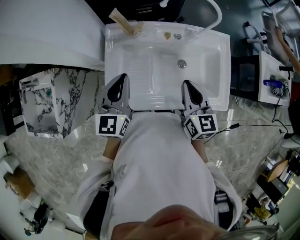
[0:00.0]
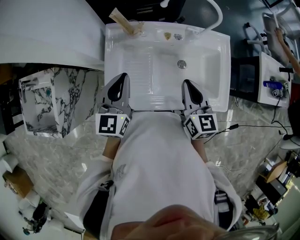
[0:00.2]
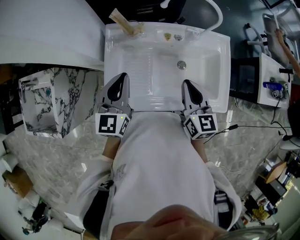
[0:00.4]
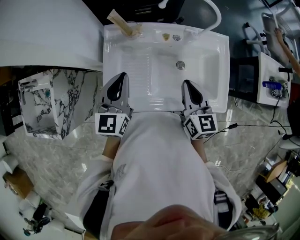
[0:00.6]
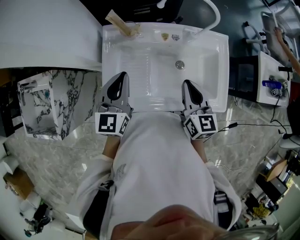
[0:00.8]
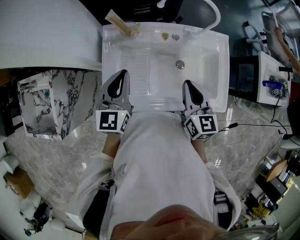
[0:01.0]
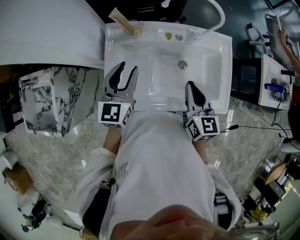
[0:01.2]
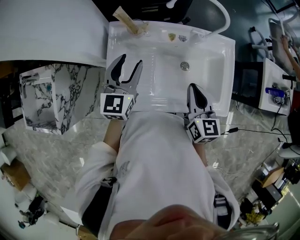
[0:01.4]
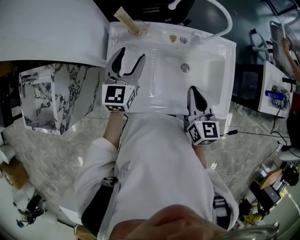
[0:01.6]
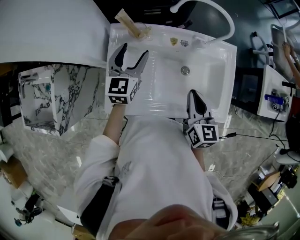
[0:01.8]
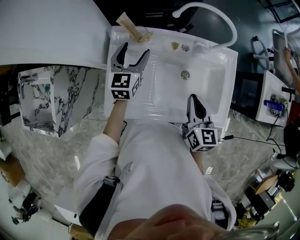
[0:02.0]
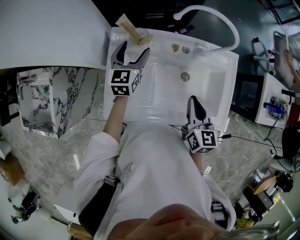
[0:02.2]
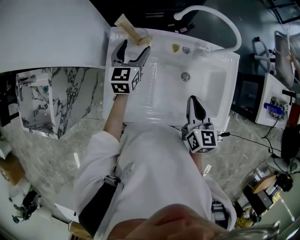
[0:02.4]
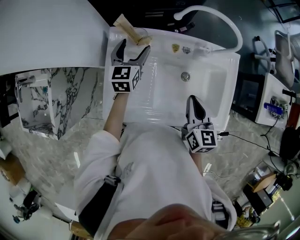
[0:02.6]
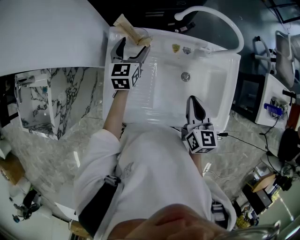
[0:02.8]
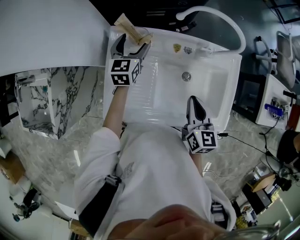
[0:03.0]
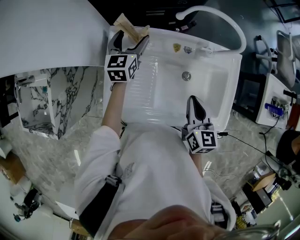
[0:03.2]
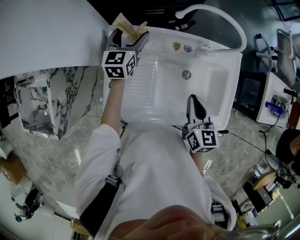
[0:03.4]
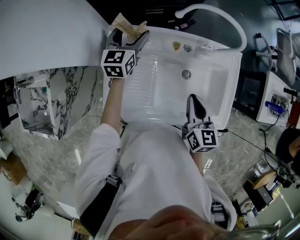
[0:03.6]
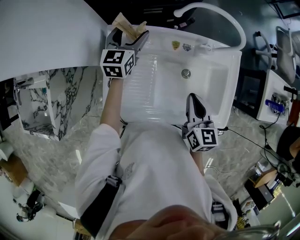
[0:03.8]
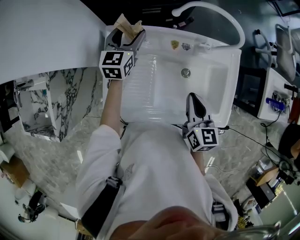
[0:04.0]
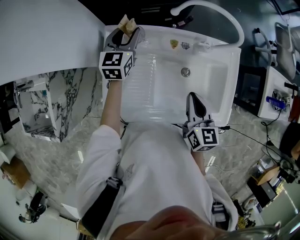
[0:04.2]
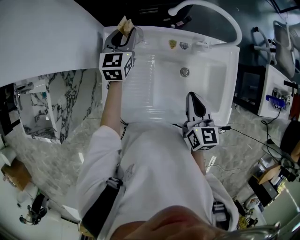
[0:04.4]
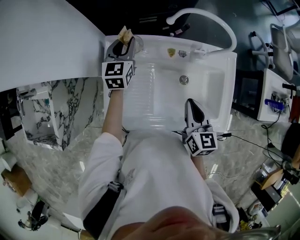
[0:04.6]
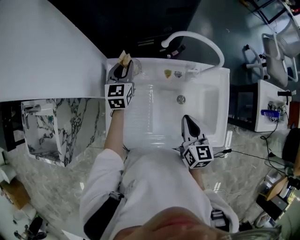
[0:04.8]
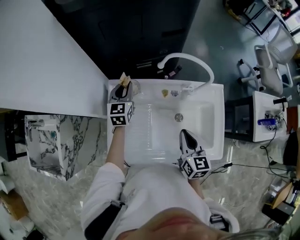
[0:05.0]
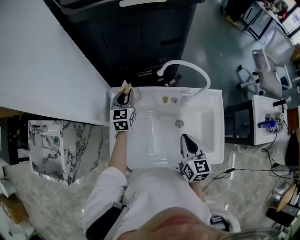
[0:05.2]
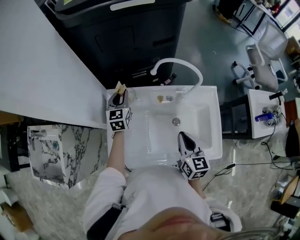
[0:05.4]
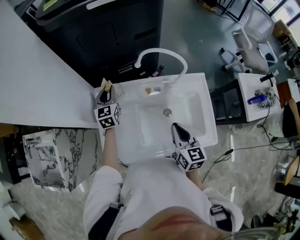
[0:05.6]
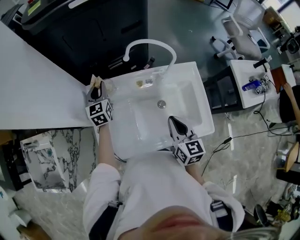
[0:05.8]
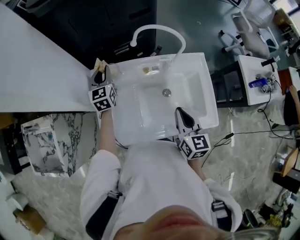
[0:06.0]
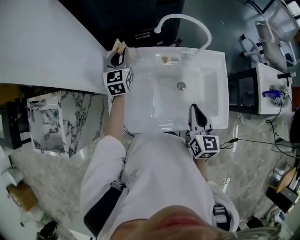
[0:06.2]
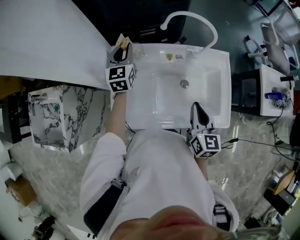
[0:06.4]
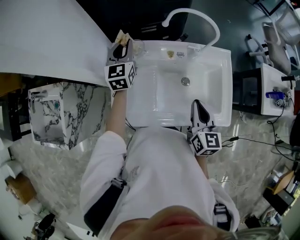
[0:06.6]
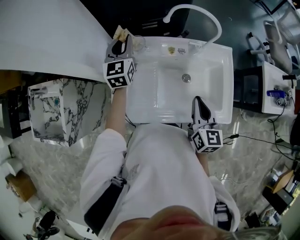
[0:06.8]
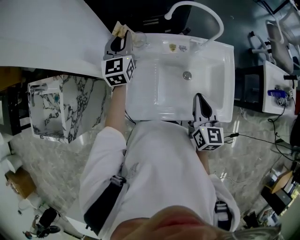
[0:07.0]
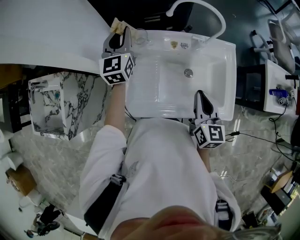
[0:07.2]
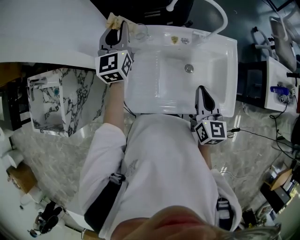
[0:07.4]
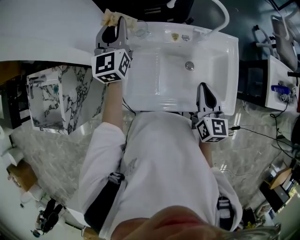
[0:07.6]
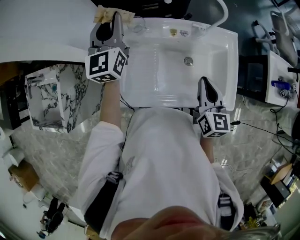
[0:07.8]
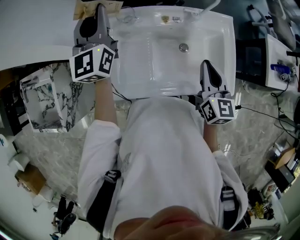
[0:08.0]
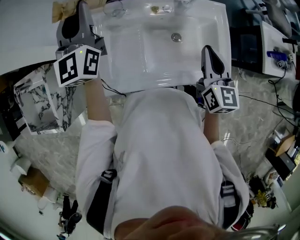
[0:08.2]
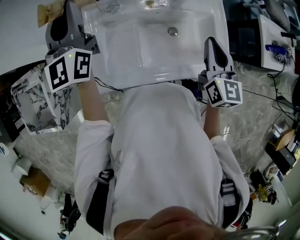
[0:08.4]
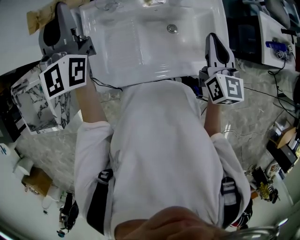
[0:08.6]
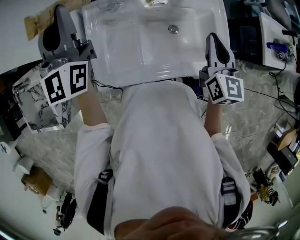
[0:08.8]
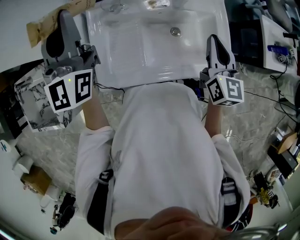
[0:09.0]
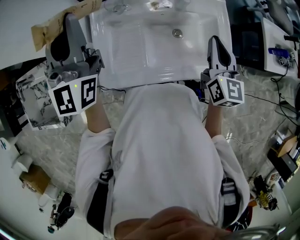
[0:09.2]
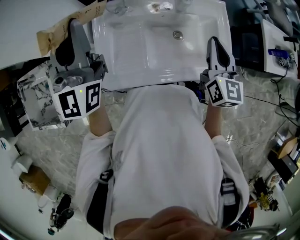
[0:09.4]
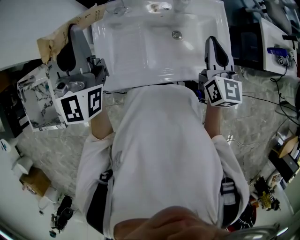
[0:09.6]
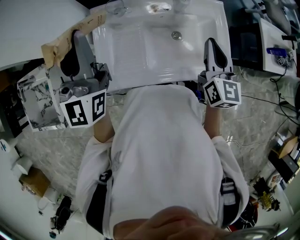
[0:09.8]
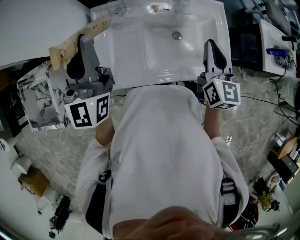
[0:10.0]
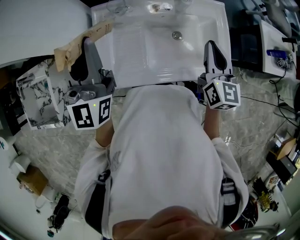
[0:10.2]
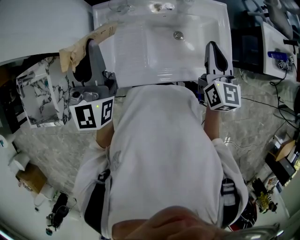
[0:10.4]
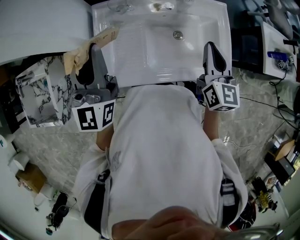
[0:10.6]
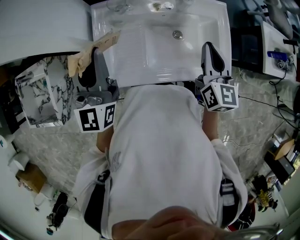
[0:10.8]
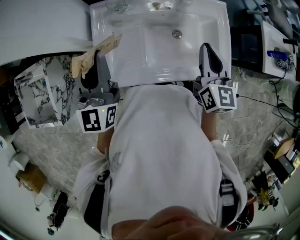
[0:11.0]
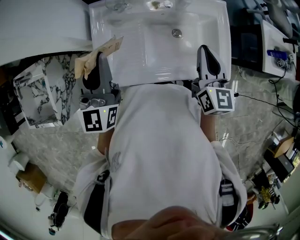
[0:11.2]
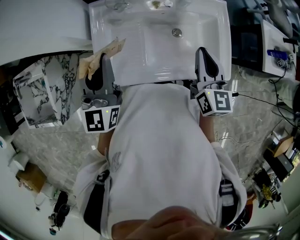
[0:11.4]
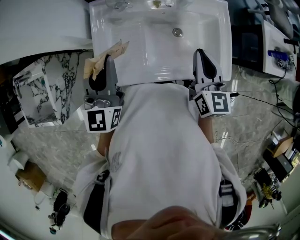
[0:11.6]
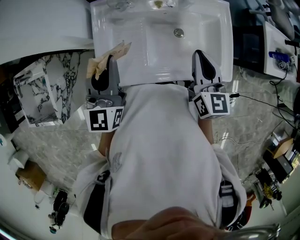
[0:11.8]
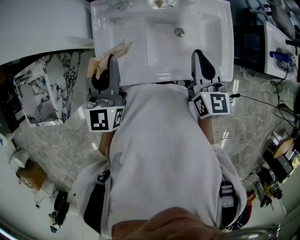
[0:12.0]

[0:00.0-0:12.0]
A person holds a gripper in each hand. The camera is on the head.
0.0 to 1.6 s: The left gripper shifts approximately 10 cm forward, and opens.
1.6 to 3.0 s: The left gripper heads forward and downward, covering about 15 cm. Meanwhile the right gripper shifts by about 5 cm.
3.0 to 4.4 s: The left gripper closes.
4.4 to 6.0 s: The right gripper heads backward, covering approximately 5 cm, while the left gripper shifts by roughly 5 cm.
6.0 to 7.6 s: The left gripper shifts roughly 10 cm upward.
7.6 to 9.0 s: The right gripper travels to the right and upward by some 10 cm. The left gripper travels upward and backward by some 15 cm.
9.0 to 10.4 s: The left gripper shifts some 10 cm backward.
10.4 to 12.0 s: The left gripper shifts approximately 10 cm downward. Meanwhile the right gripper shifts by roughly 5 cm.

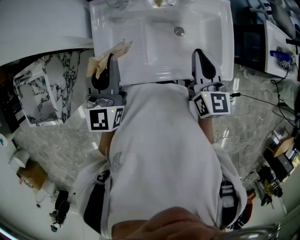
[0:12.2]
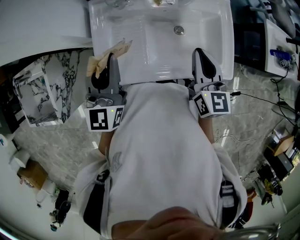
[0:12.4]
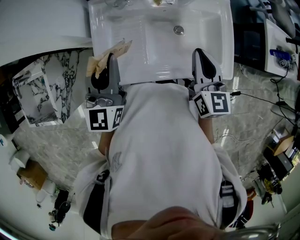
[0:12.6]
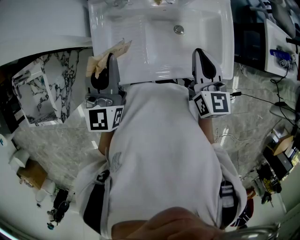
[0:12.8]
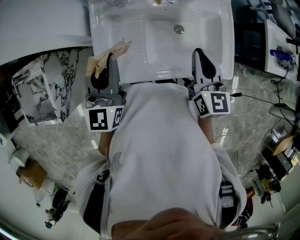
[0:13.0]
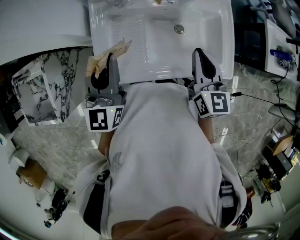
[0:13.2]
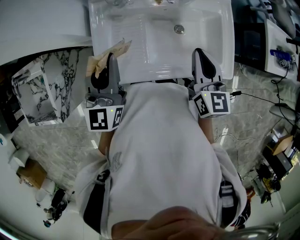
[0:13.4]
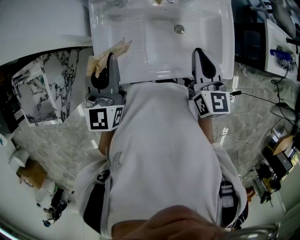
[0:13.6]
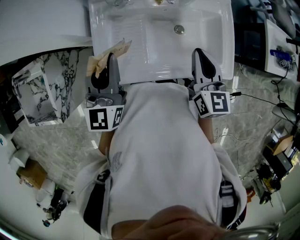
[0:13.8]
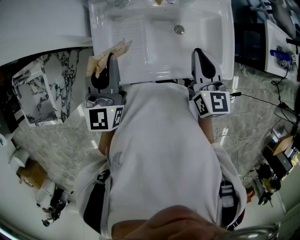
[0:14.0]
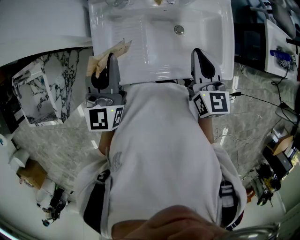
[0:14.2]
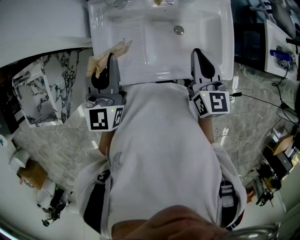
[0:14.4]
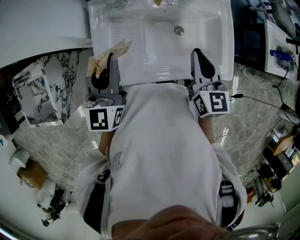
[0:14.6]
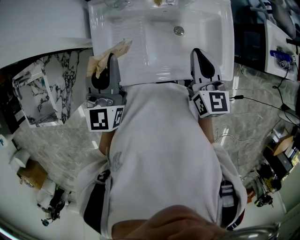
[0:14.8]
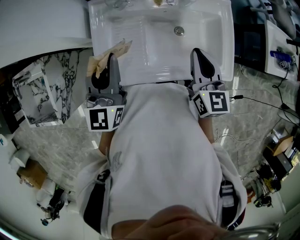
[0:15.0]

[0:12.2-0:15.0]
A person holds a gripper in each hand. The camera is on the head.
12.2 to 15.0 s: Both grippers stay put.

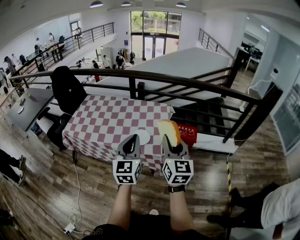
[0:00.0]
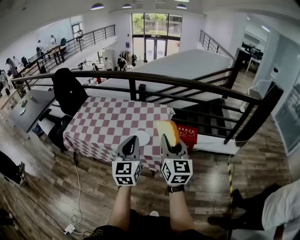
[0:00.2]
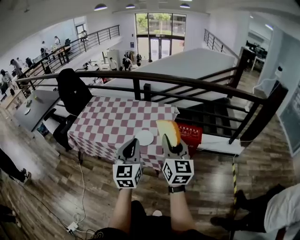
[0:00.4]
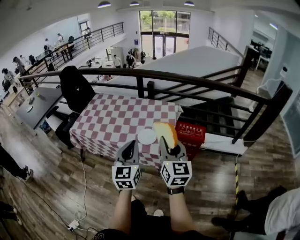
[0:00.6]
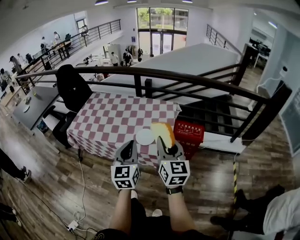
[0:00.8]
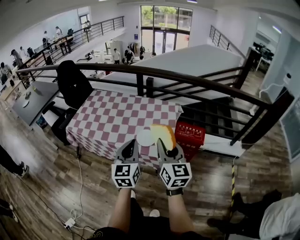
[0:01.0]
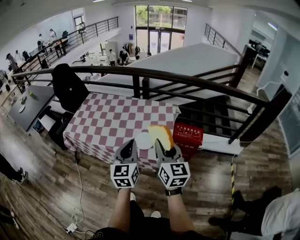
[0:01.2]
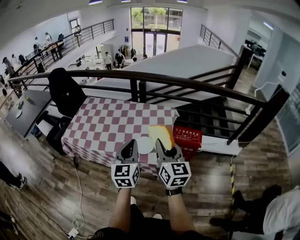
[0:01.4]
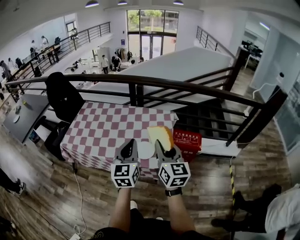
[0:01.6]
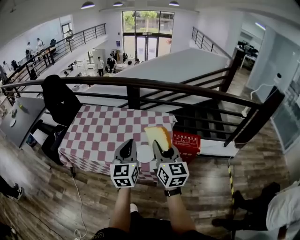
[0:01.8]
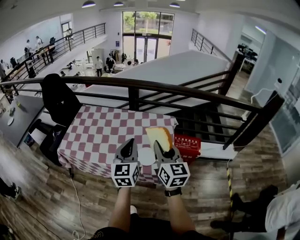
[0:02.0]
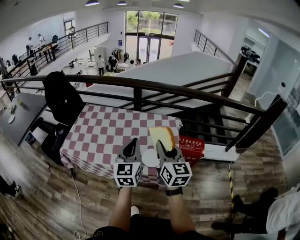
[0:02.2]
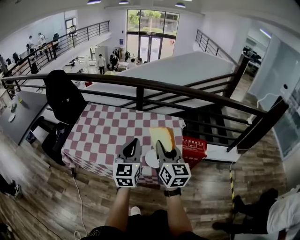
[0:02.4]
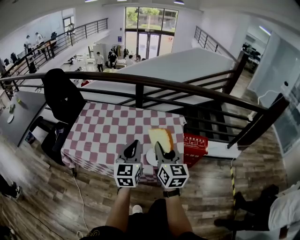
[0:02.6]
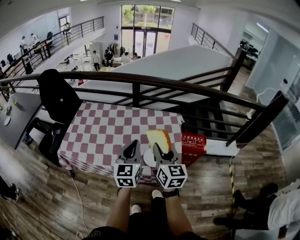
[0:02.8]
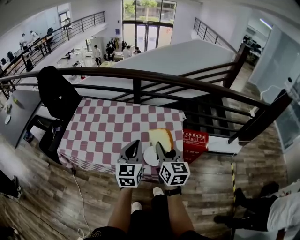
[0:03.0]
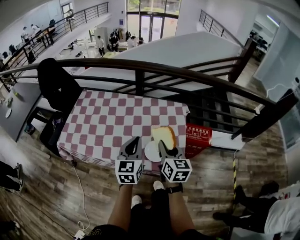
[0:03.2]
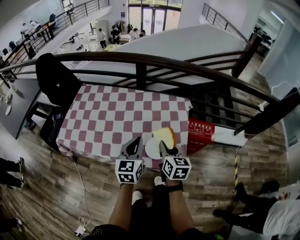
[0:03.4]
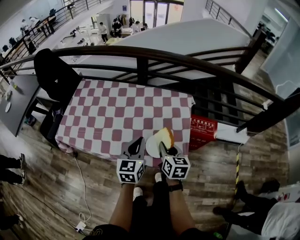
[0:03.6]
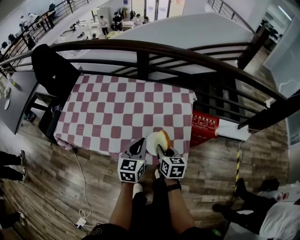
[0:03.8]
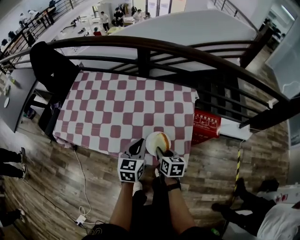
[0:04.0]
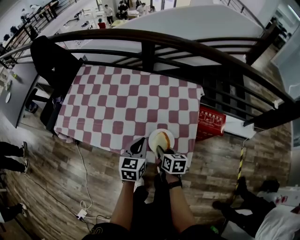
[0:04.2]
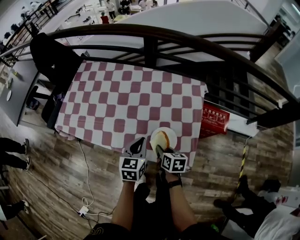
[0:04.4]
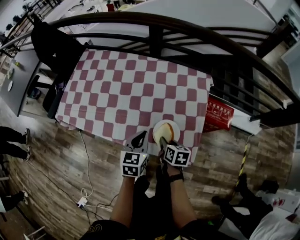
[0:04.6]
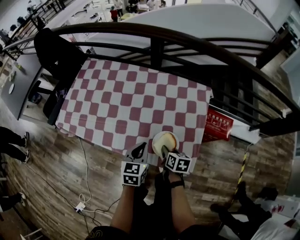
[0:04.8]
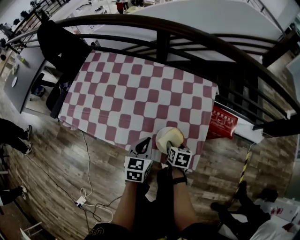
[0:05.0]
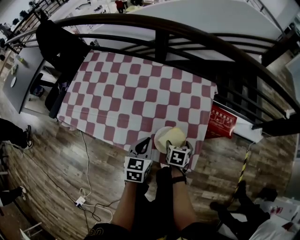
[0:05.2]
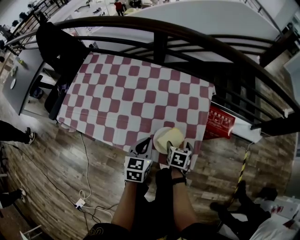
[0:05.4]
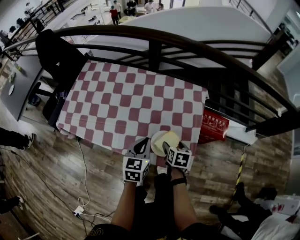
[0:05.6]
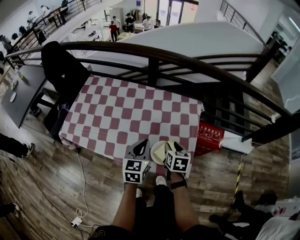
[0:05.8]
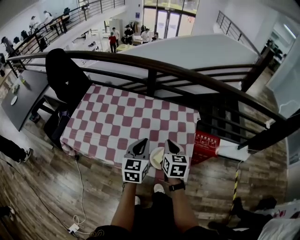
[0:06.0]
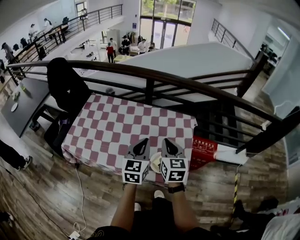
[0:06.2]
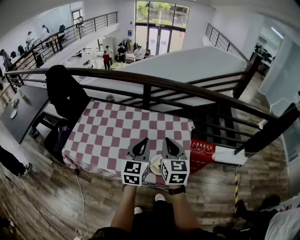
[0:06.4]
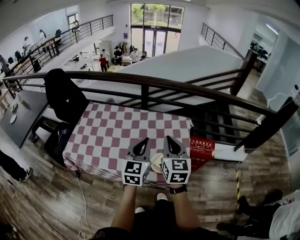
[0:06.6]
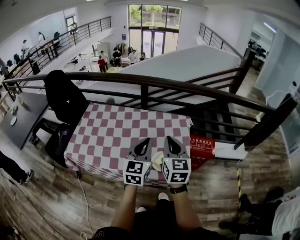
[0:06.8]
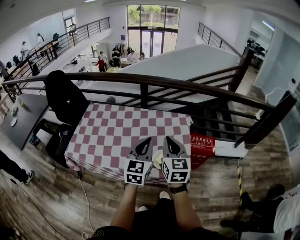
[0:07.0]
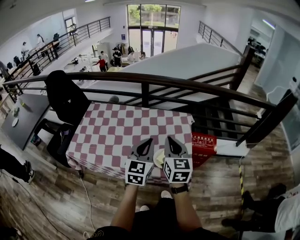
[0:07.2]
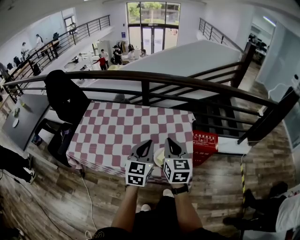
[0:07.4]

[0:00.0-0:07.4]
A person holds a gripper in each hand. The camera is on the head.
0.0 to 1.4 s: Both grippers move forward, some 10 cm.
1.4 to 3.0 s: The grippers both shift forward, to the left and downward by some 15 cm.
3.0 to 4.4 s: The two grippers go some 25 cm downward. The right gripper tips its fingers downward by about 30 degrees, while the left gripper swivels roughly 30 degrees.
4.4 to 6.0 s: The right gripper goes roughly 20 cm upward and forward, rotates roughly 30 degrees, and opens and closes again. Meanwhile the left gripper shifts approximately 10 cm upward.
6.0 to 7.4 s: The grippers both shift upward and backward by roughly 10 cm.

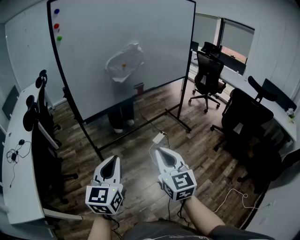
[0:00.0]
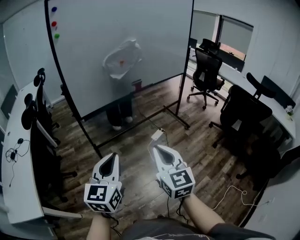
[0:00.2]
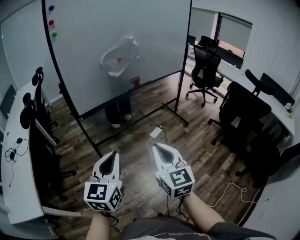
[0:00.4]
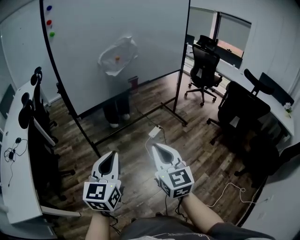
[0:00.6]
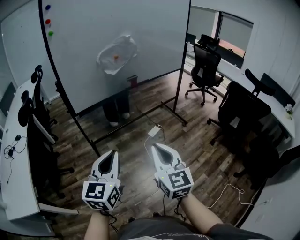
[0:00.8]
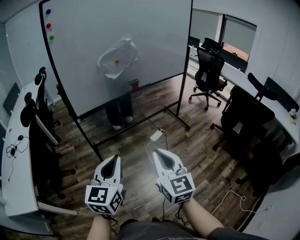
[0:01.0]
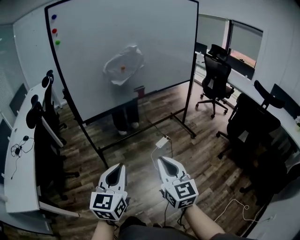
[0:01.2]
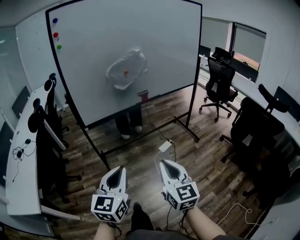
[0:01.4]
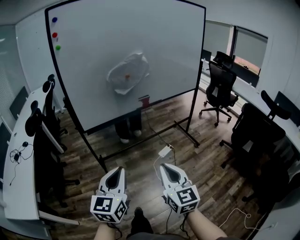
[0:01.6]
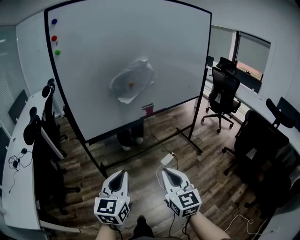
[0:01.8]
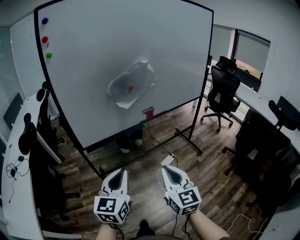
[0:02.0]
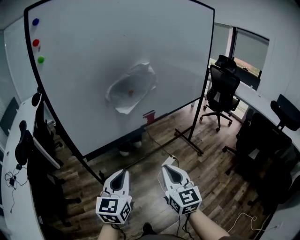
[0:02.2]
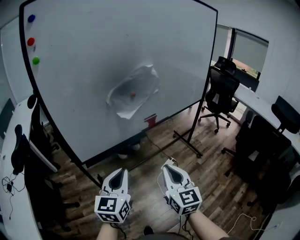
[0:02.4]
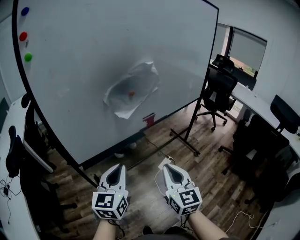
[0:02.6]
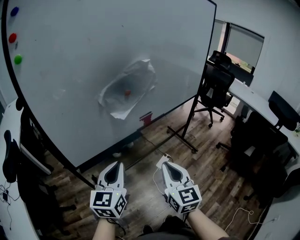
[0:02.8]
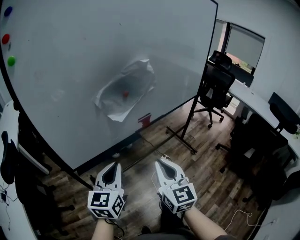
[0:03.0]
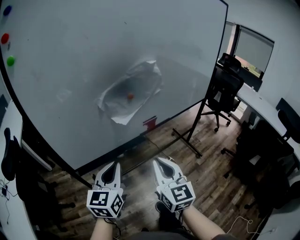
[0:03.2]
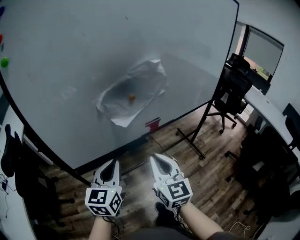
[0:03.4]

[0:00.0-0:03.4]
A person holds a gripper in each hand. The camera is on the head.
0.0 to 1.6 s: The grippers both shift forward and to the right by roughly 10 cm.
1.6 to 3.4 s: The grippers both shift forward by some 35 cm.
